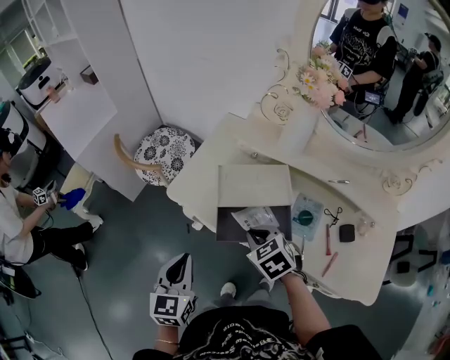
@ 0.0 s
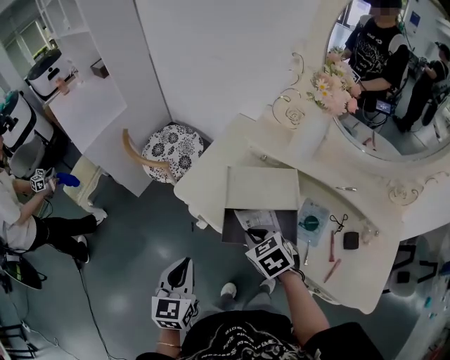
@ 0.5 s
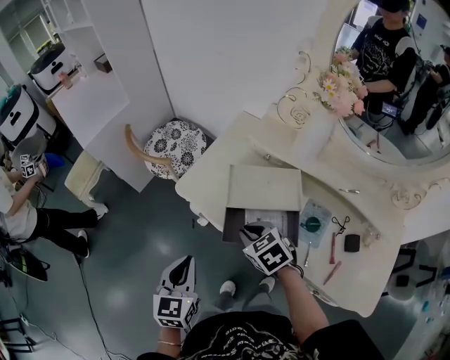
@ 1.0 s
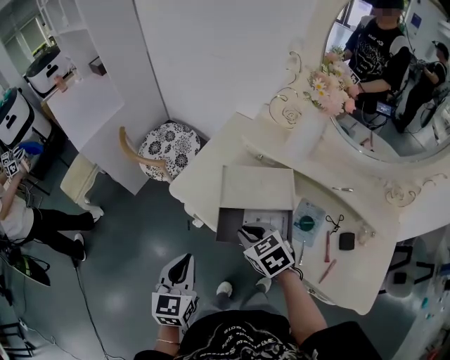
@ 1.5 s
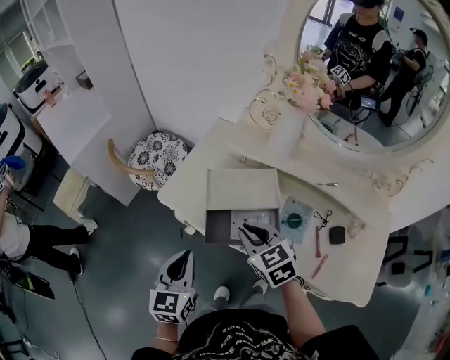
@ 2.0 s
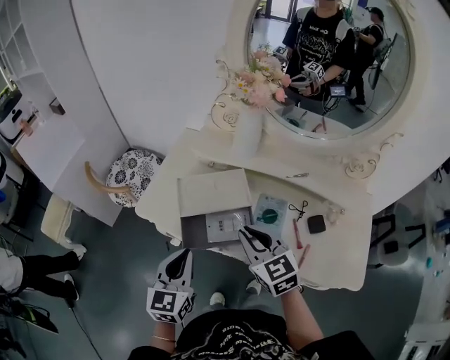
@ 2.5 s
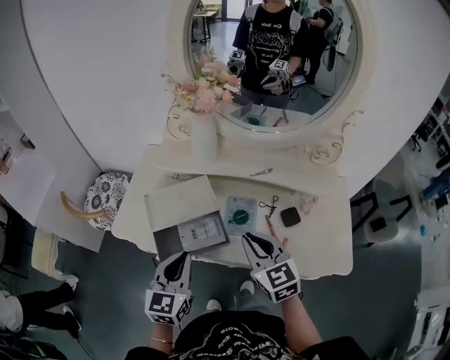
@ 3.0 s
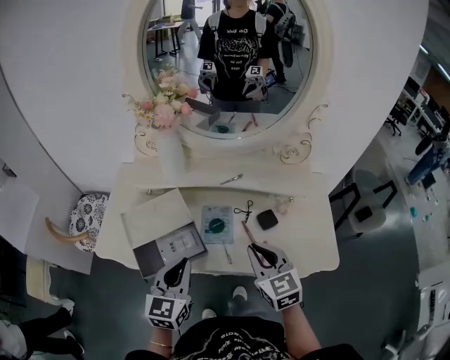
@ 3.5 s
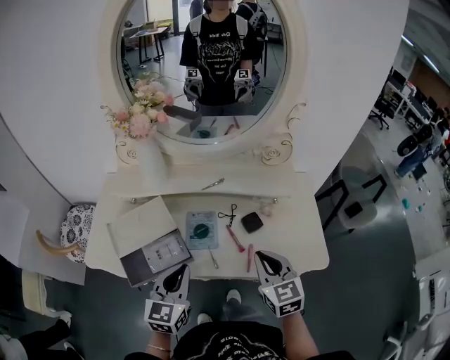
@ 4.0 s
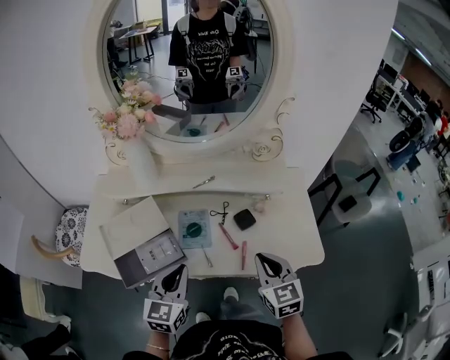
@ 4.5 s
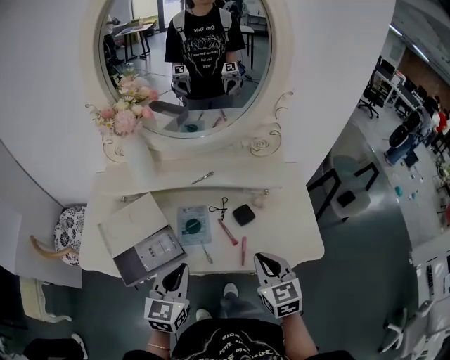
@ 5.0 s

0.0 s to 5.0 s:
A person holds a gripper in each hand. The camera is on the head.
0.0 to 2.5 s: The right gripper is displaced upward and to the right by approximately 10 cm, and changes its angle by some 30 degrees. The left gripper moves to the right, approximately 10 cm.
2.5 to 5.0 s: The left gripper moves approximately 20 cm, and turns by some 30 degrees. Meanwhile the right gripper ends up about 25 cm from where it was, and rotates about 40 degrees.

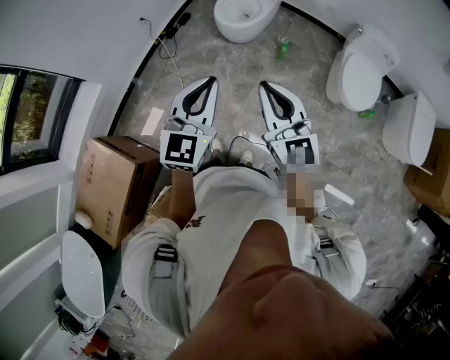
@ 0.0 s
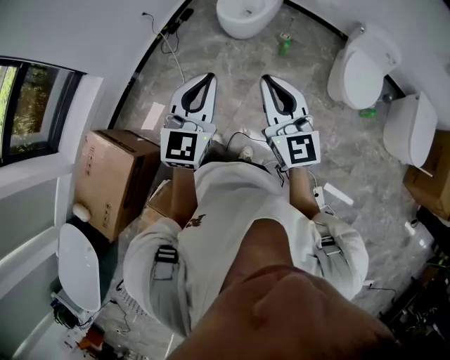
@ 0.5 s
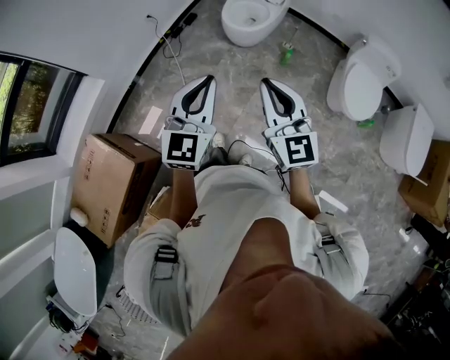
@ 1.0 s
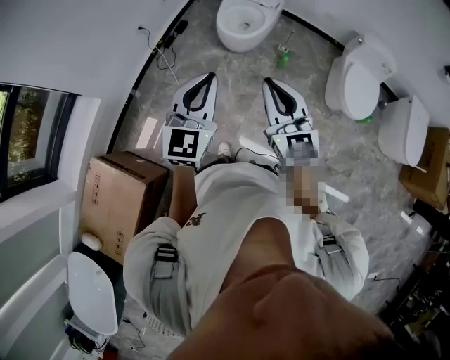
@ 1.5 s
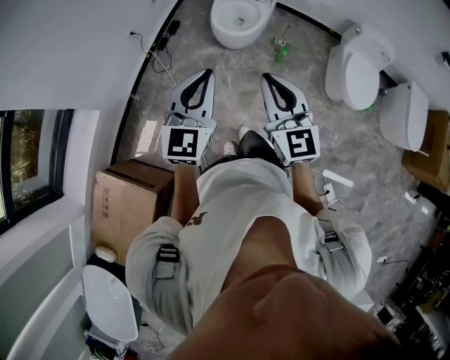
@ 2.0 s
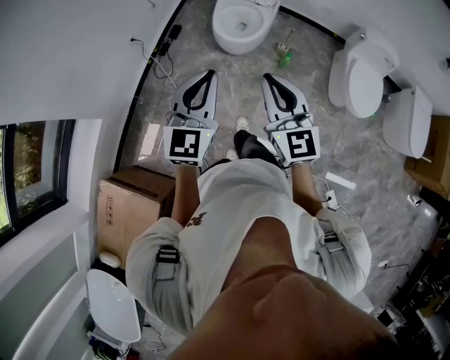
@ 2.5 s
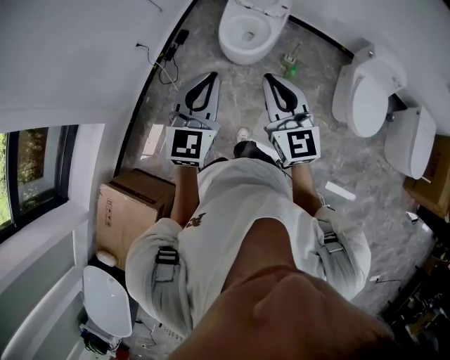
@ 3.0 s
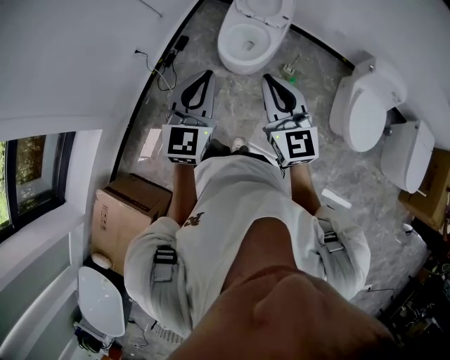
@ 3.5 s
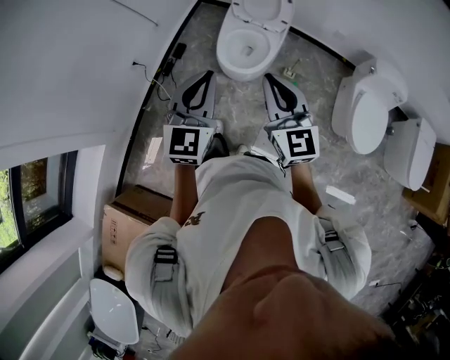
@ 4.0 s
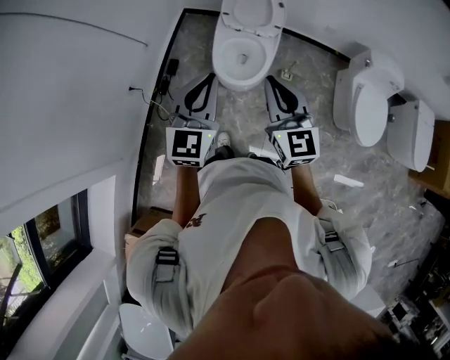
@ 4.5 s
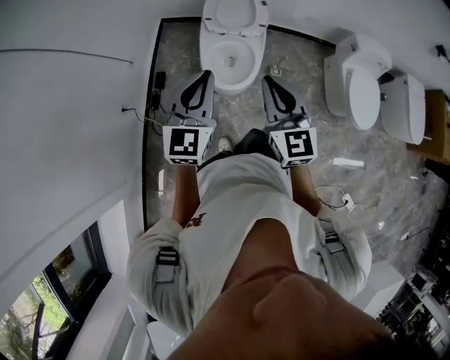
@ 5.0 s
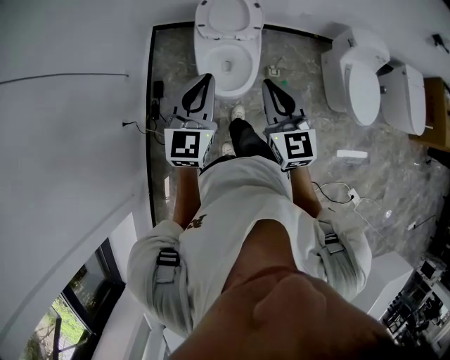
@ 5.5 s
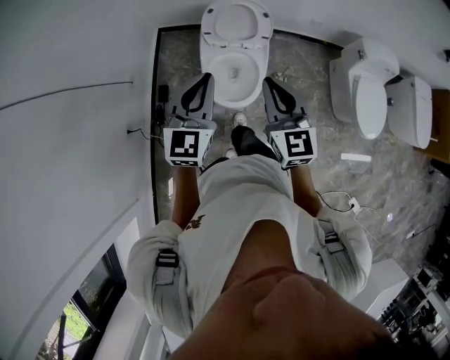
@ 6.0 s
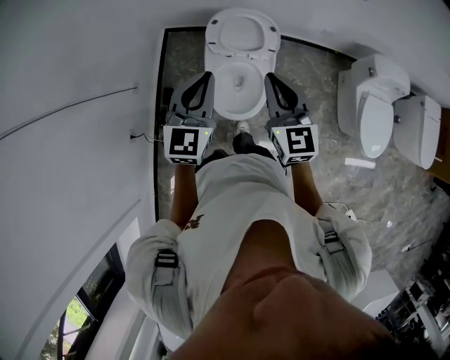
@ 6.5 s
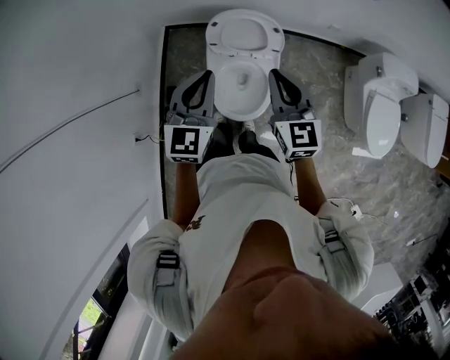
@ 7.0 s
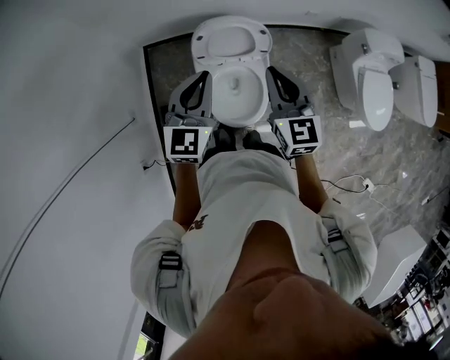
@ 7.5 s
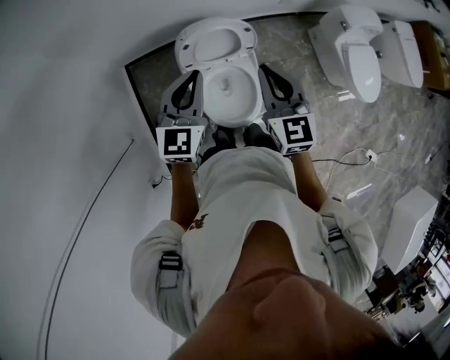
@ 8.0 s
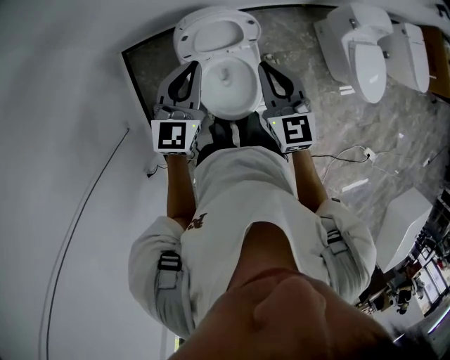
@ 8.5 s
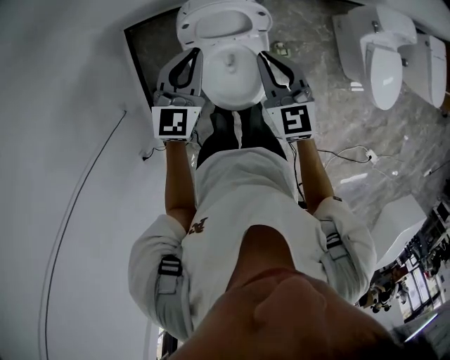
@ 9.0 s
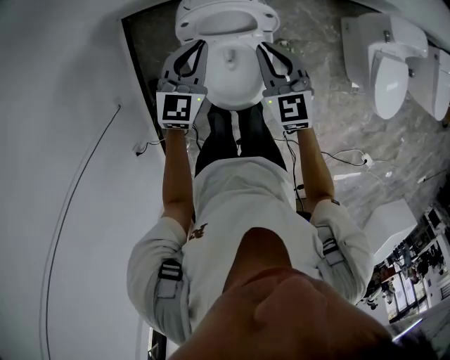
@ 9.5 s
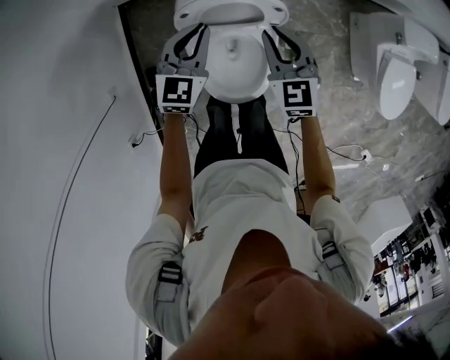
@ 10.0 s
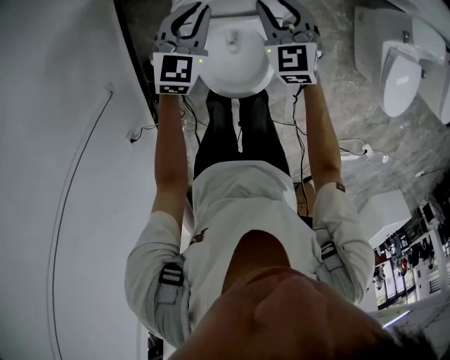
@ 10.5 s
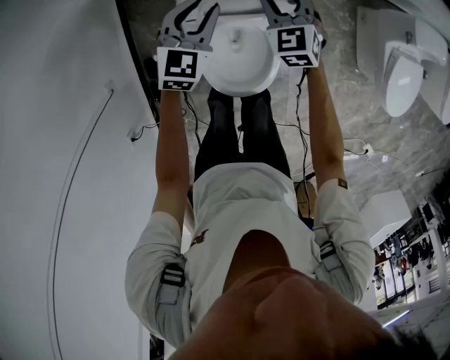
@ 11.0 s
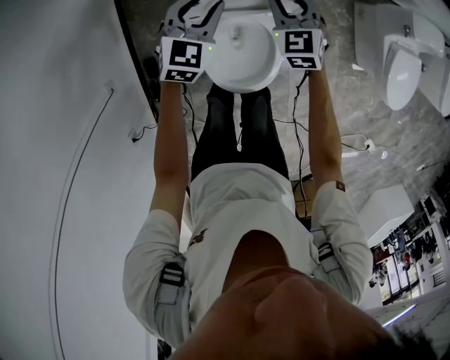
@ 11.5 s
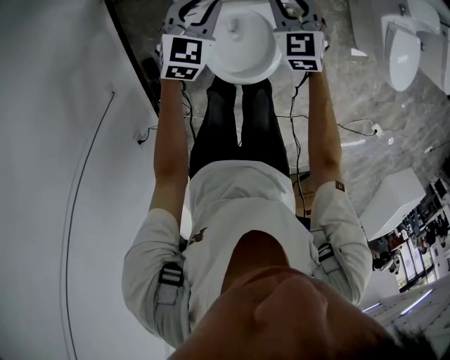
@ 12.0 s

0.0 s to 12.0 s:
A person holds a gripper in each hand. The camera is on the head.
0.0 to 2.0 s: Both grippers move forward and to the left, roughly 20 cm.
2.0 to 4.0 s: Both grippers move forward, roughly 30 cm.
4.0 to 6.0 s: The grippers both shift forward by about 30 cm. The right gripper rotates roughly 20 degrees.
6.0 to 8.0 s: Both grippers move forward, about 30 cm. The right gripper swivels about 20 degrees; the left gripper changes its angle by approximately 20 degrees.
8.0 to 10.0 s: The two grippers go approximately 25 cm downward and forward. The right gripper swivels about 20 degrees.
10.0 to 12.0 s: The two grippers go roughly 5 cm downward. The left gripper opens up; the right gripper reaches roughly 10 cm forward, then returns.

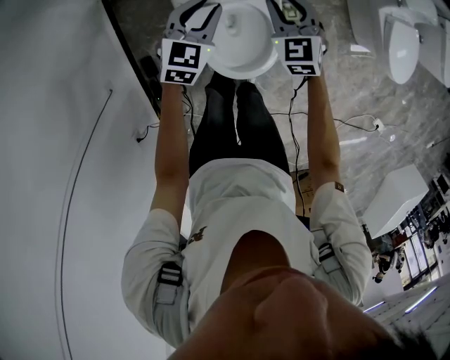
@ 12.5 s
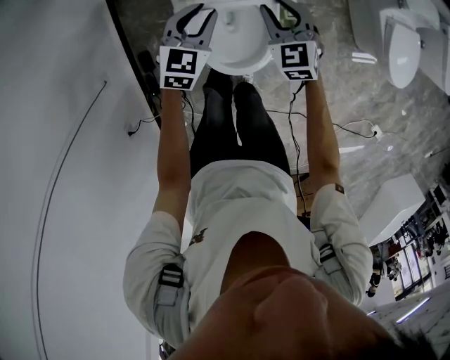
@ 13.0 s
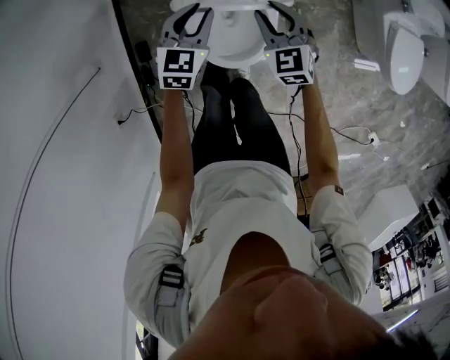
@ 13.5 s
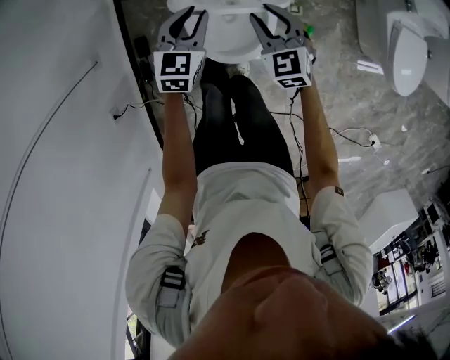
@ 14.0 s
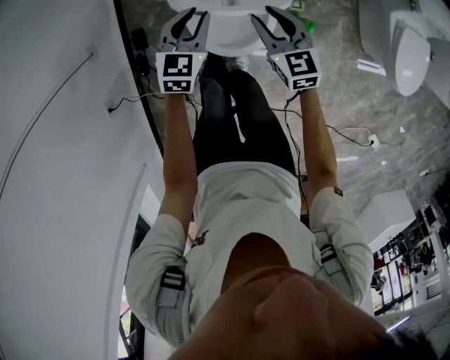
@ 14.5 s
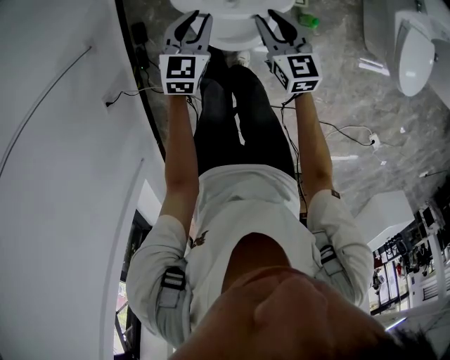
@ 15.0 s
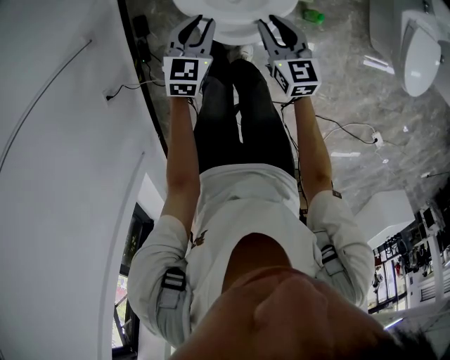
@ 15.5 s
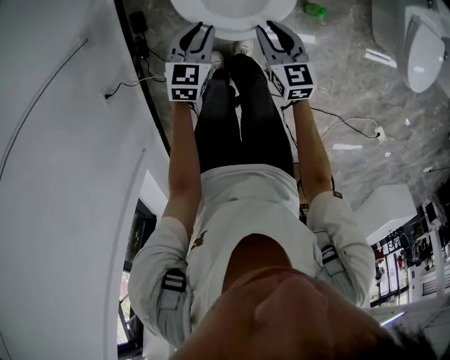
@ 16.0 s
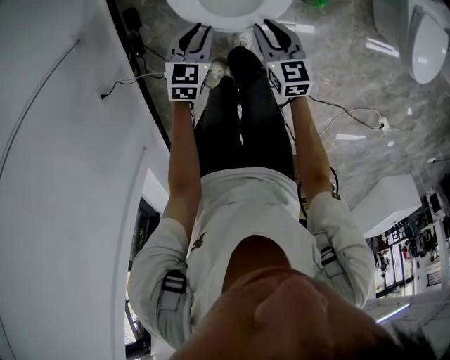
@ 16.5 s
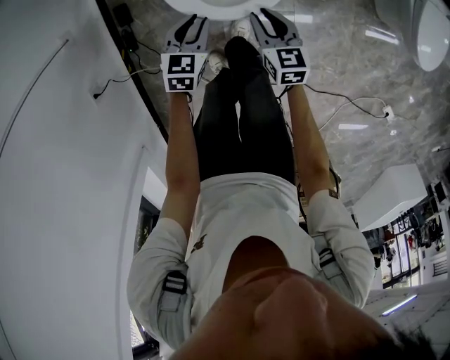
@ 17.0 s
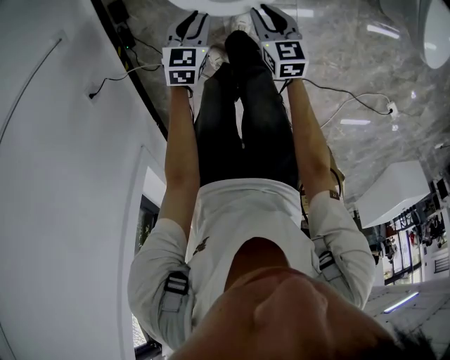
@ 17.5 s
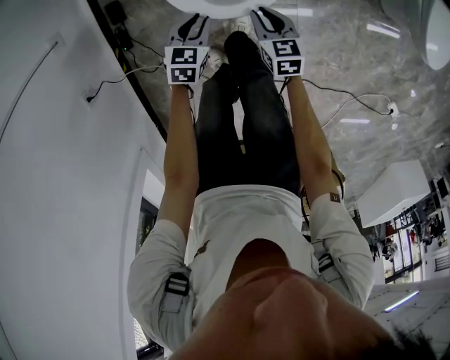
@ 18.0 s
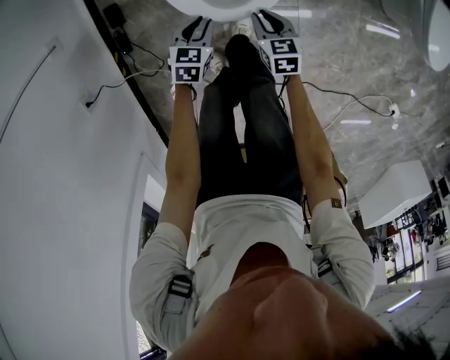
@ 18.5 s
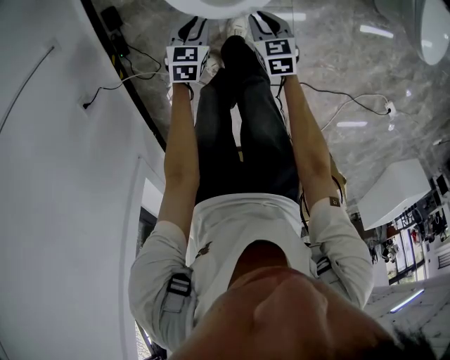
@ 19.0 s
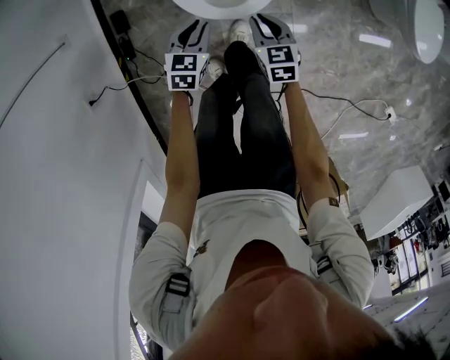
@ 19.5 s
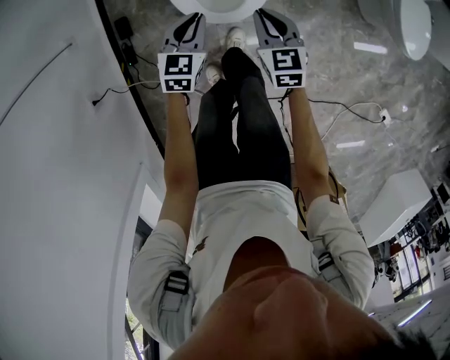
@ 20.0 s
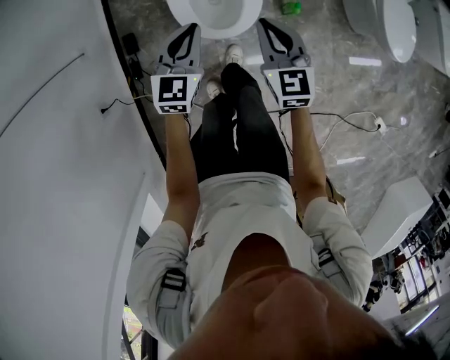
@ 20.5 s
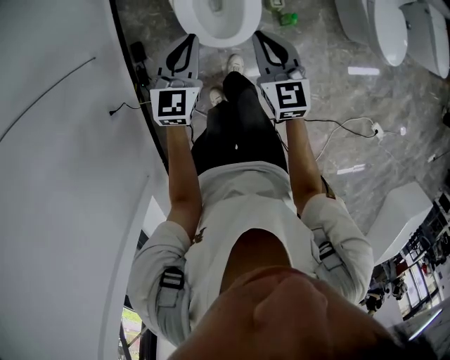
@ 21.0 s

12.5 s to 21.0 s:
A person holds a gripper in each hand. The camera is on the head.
12.5 to 14.5 s: The grippers both shift backward by some 15 cm. The right gripper swivels roughly 30 degrees.
14.5 to 16.5 s: The left gripper moves backward and downward, roughly 15 cm, while the right gripper travels downward and backward by roughly 15 cm.
16.5 to 19.0 s: The left gripper is displaced downward by approximately 15 cm. The right gripper goes roughly 20 cm downward and backward.
19.0 to 21.0 s: The grippers both shift upward by roughly 40 cm. The right gripper tilts its fingers about 30 degrees upward. The left gripper points its fingers some 30 degrees further upward.

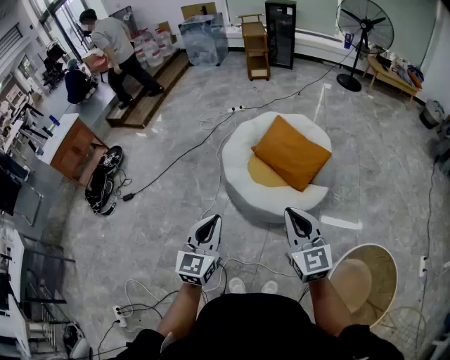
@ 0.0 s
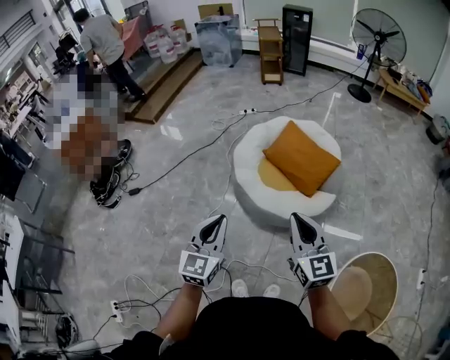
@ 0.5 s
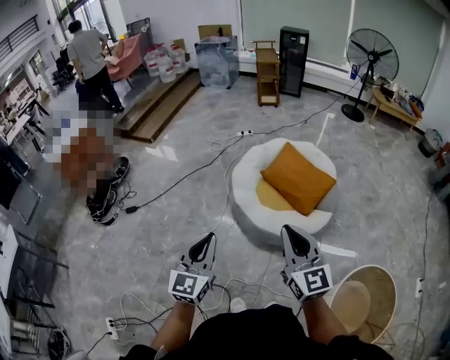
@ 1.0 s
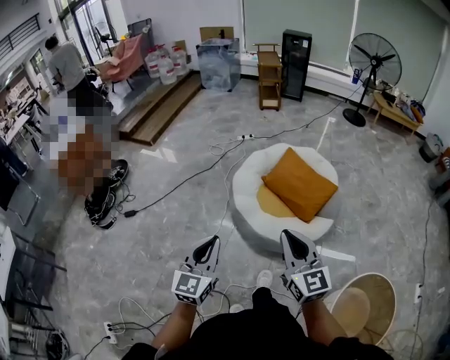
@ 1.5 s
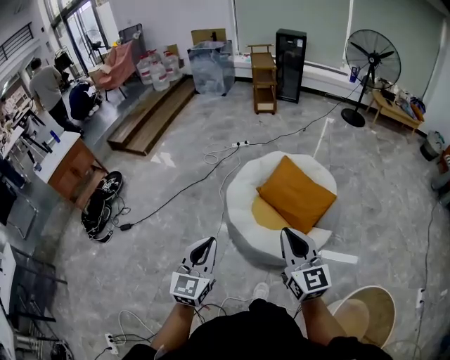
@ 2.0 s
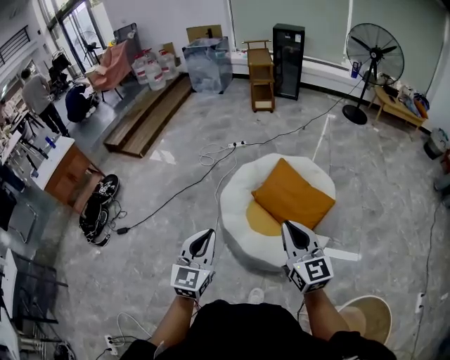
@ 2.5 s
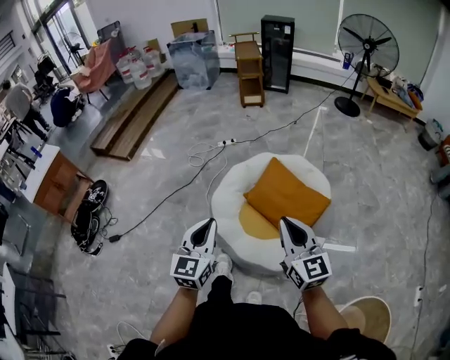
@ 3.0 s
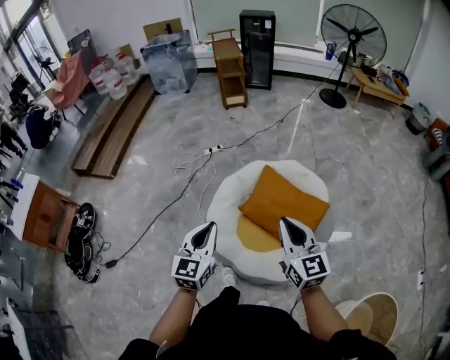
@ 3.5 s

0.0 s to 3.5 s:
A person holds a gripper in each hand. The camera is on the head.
0.0 to 2.0 s: The left gripper goes roughly 15 cm forward and to the left. Meanwhile the right gripper goes roughly 15 cm forward.
2.0 to 3.5 s: The grippers both shift forward by about 30 cm.
